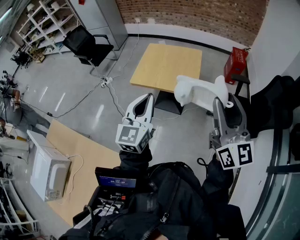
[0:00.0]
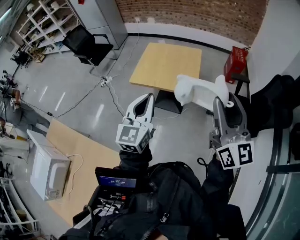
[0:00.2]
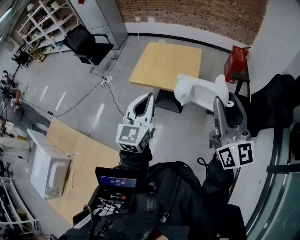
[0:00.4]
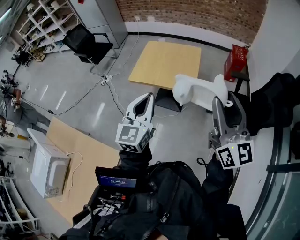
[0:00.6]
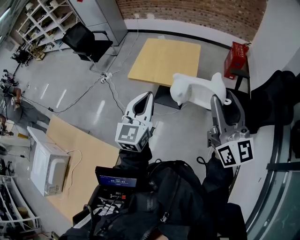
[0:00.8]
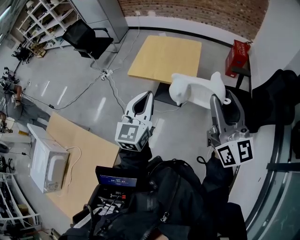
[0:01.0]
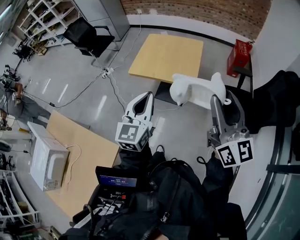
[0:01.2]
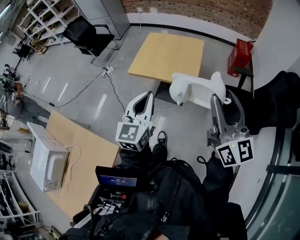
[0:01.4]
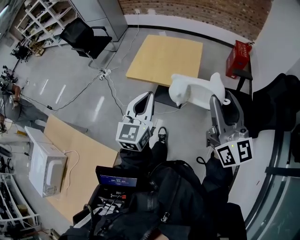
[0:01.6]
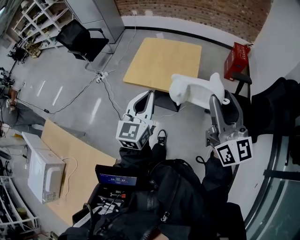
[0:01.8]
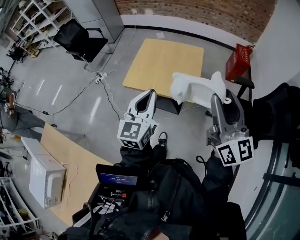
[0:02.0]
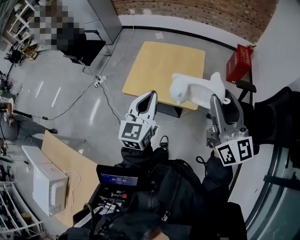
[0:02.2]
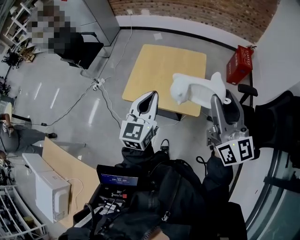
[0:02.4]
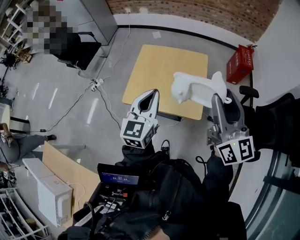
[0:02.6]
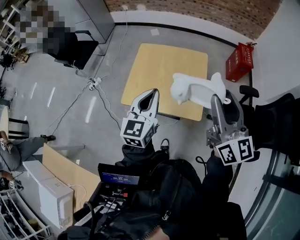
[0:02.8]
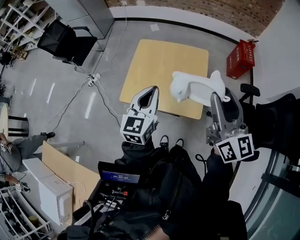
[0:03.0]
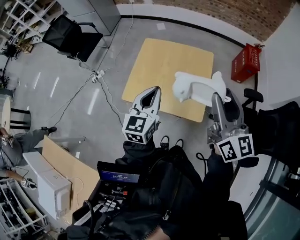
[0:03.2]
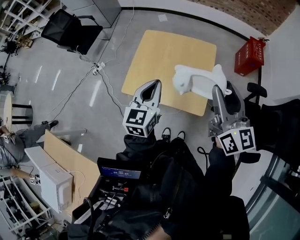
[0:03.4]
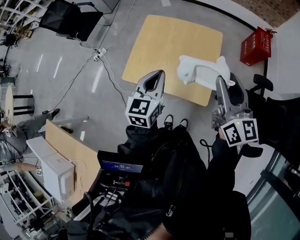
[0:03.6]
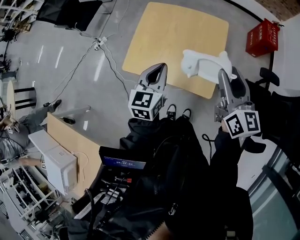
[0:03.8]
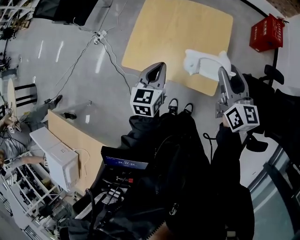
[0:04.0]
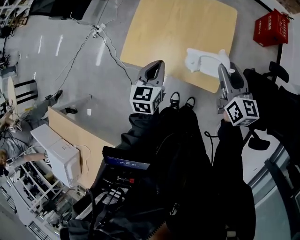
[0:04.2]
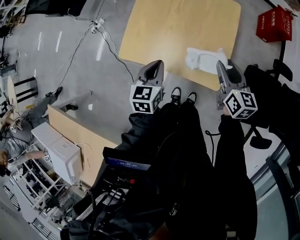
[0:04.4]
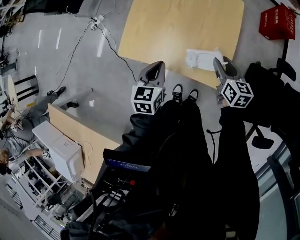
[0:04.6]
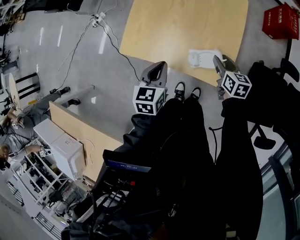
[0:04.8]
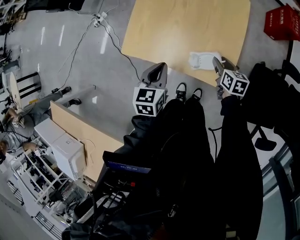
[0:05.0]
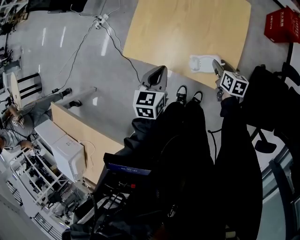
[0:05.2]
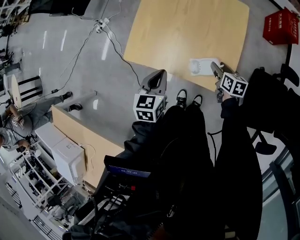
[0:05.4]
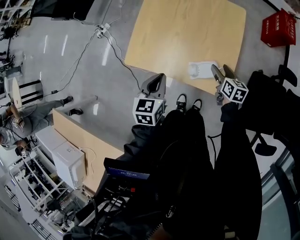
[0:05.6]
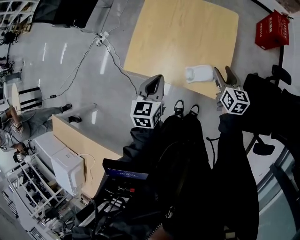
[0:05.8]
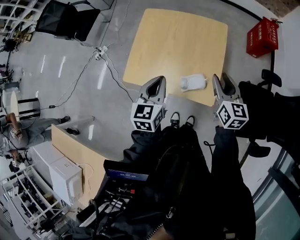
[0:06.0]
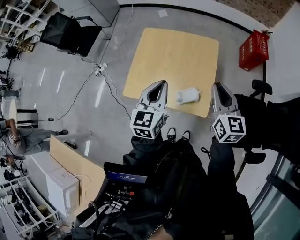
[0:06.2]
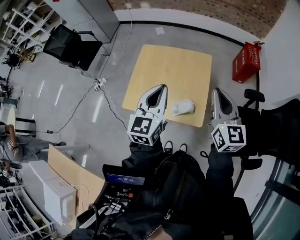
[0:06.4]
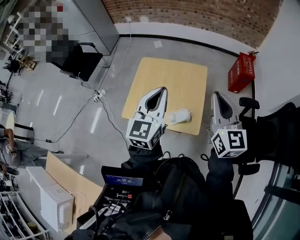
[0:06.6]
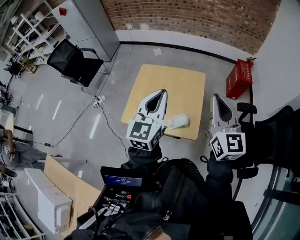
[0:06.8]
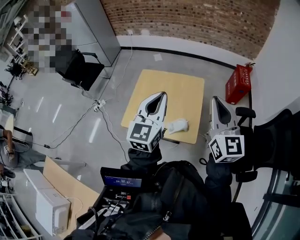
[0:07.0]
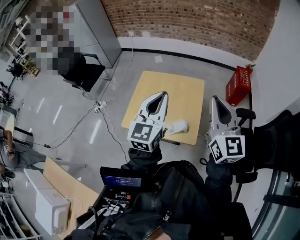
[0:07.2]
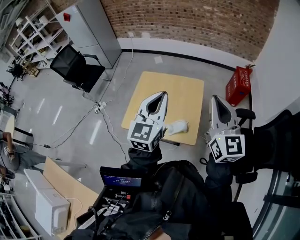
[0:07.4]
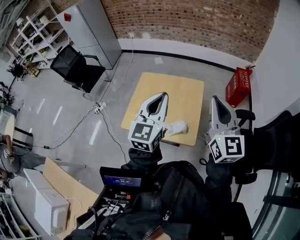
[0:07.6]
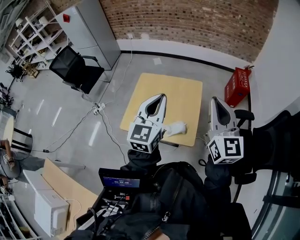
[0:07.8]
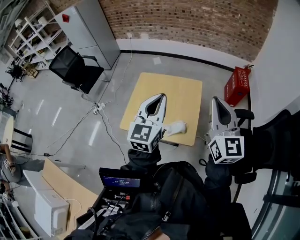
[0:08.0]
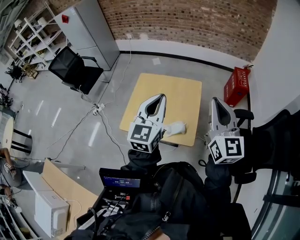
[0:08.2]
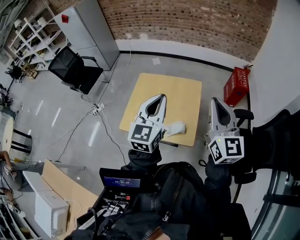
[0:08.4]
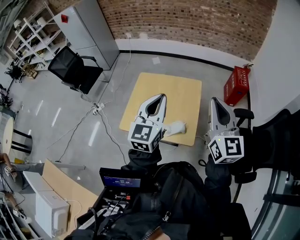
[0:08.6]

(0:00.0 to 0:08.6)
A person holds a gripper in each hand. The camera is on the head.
0:00.0 - 0:01.4: The left gripper moves approximately 5 cm.
0:01.4 - 0:02.8: The two grippers go about 35 cm forward.
0:02.8 - 0:04.4: The left gripper moves downward, roughly 25 cm, and rotates approximately 30 degrees. The right gripper is displaced downward and forward by some 35 cm, and tilts its fingers about 30 degrees downward.
0:04.4 - 0:05.8: The right gripper moves some 20 cm downward and comes back.
0:05.8 - 0:07.2: Both grippers move upward, approximately 35 cm. The left gripper tips its fingers upward by some 30 degrees. Meanwhile the right gripper tilts its fingers roughly 30 degrees upward, and closes up.
0:07.2 - 0:08.6: There are only small adjustments of the grippers.

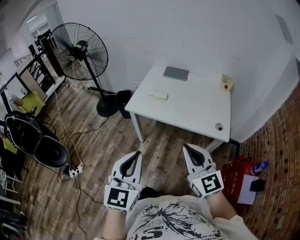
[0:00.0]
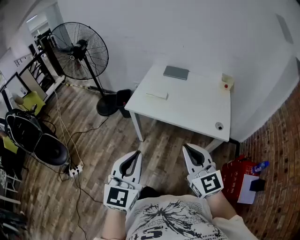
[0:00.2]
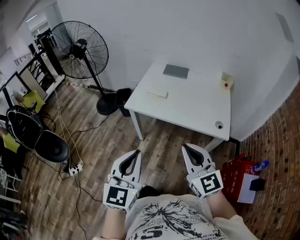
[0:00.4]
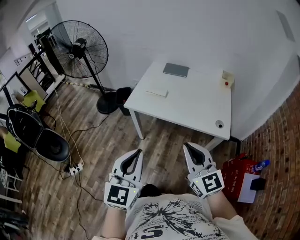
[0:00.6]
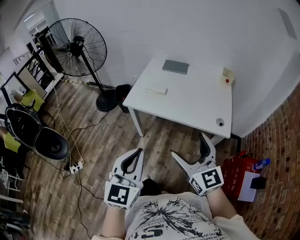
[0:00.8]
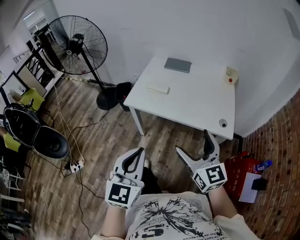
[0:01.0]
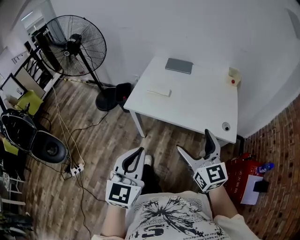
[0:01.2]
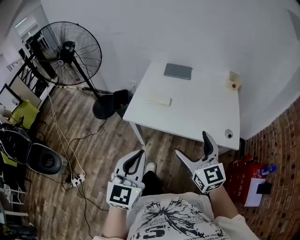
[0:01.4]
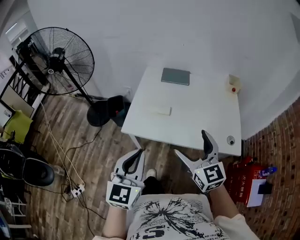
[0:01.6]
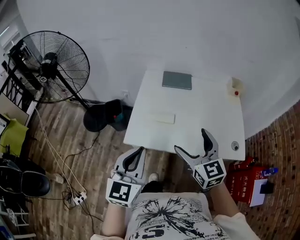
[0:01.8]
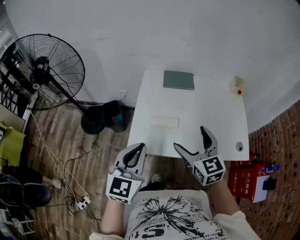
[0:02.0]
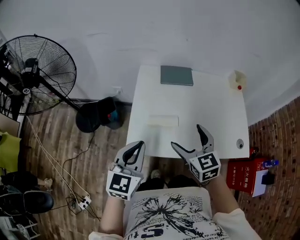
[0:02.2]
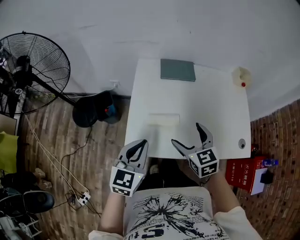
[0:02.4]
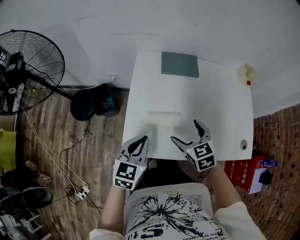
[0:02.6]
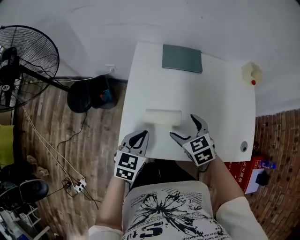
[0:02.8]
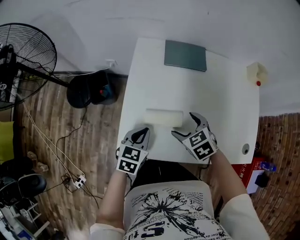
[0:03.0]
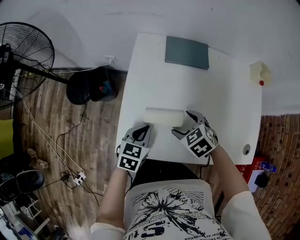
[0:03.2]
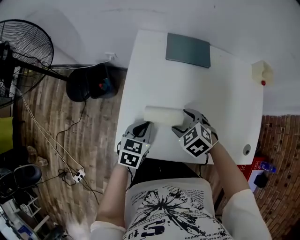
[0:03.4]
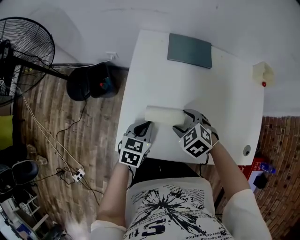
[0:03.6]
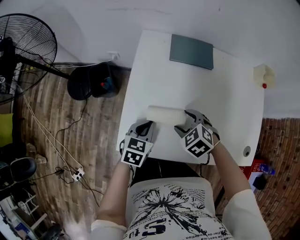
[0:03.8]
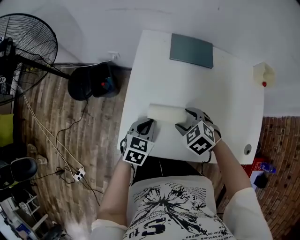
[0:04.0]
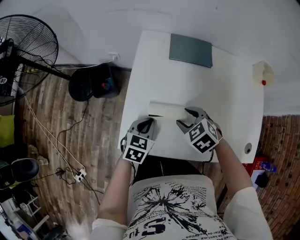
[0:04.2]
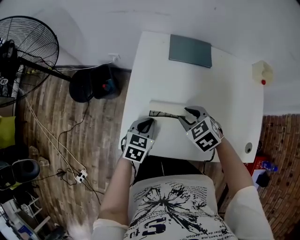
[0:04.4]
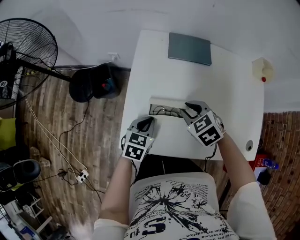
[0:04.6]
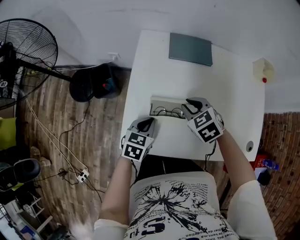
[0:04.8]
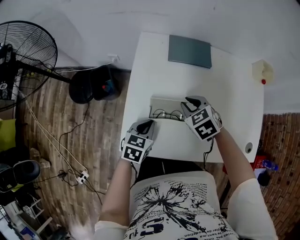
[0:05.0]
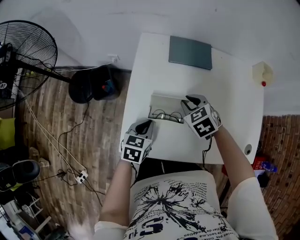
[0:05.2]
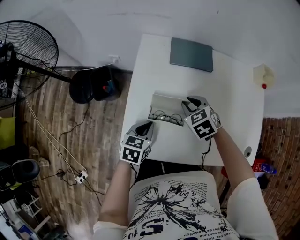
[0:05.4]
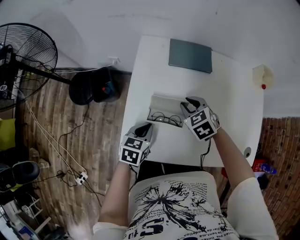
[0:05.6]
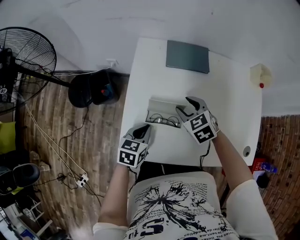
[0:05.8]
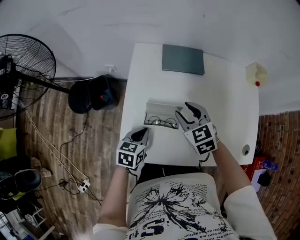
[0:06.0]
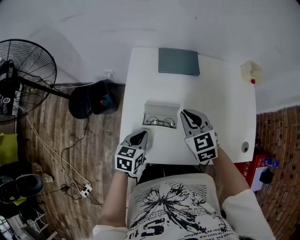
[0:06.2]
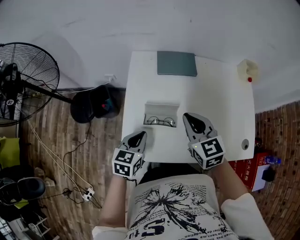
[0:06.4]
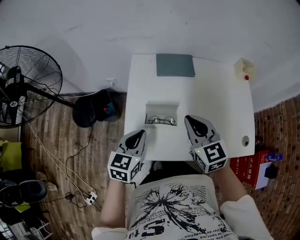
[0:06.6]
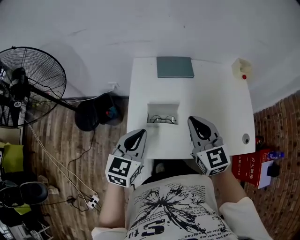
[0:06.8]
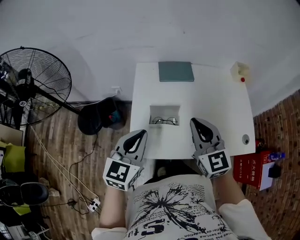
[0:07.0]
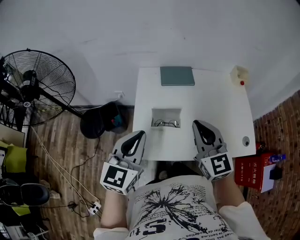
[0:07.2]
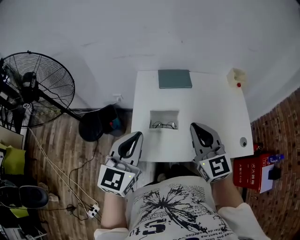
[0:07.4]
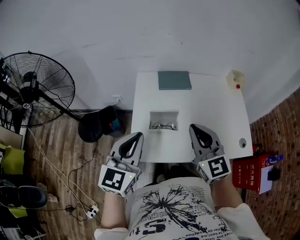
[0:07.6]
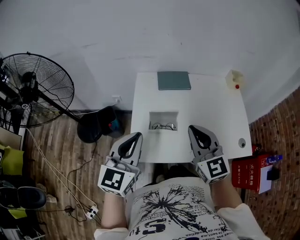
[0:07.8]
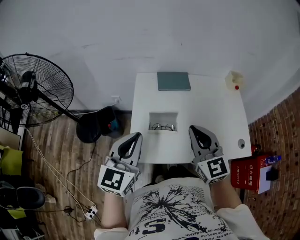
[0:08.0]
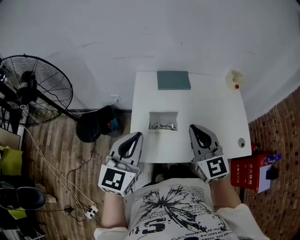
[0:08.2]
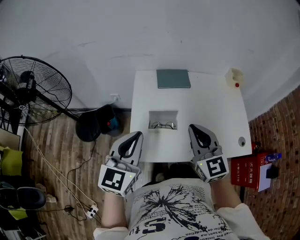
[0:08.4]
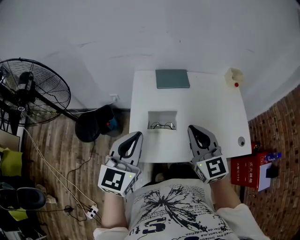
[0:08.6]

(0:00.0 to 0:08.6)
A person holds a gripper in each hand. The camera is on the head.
0:00.0 - 0:01.4: Both grippers move forward, approximately 15 cm. The right gripper opens.
0:01.4 - 0:02.8: Both grippers move forward and downward, about 40 cm. The left gripper turns by some 30 degrees, while the right gripper points its fingers some 40 degrees further downward.
0:02.8 - 0:04.4: The left gripper heads downward, covering about 10 cm, while the right gripper closes its fingers.
0:04.4 - 0:05.8: The right gripper travels forward by approximately 5 cm.
0:05.8 - 0:07.2: The right gripper moves upward and backward, roughly 30 cm, points its fingers roughly 40 degrees further upward, and closes. The left gripper moves upward, some 30 cm, and tips its fingers upward by about 30 degrees.
0:07.2 - 0:08.6: The grippers stay close to where they were, moving slightly.

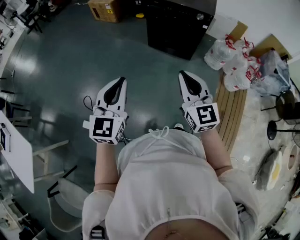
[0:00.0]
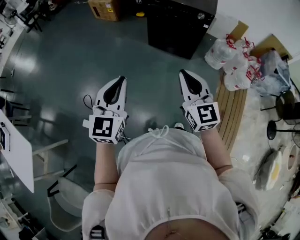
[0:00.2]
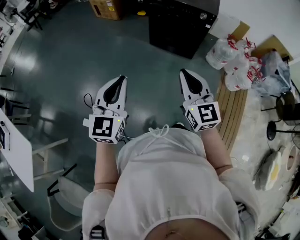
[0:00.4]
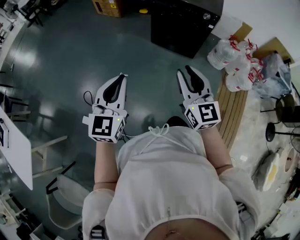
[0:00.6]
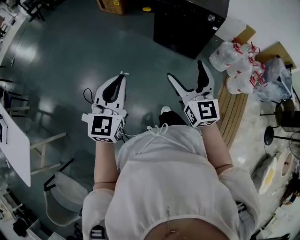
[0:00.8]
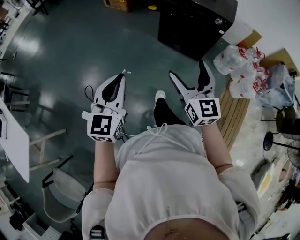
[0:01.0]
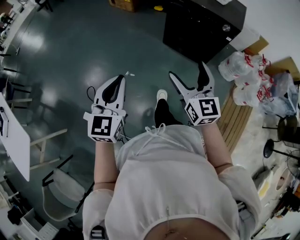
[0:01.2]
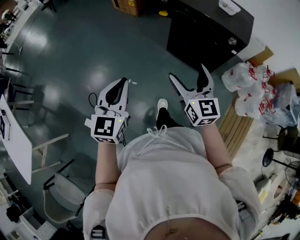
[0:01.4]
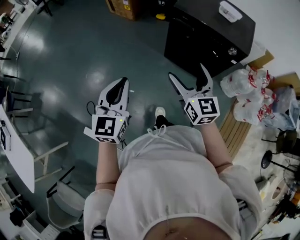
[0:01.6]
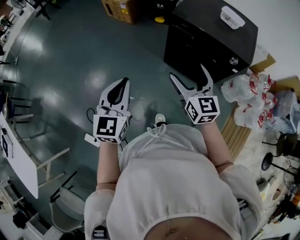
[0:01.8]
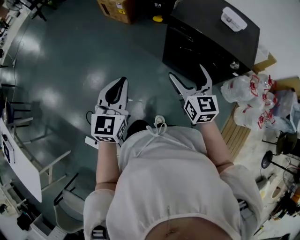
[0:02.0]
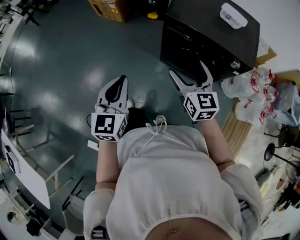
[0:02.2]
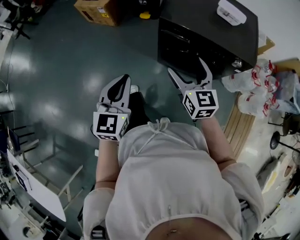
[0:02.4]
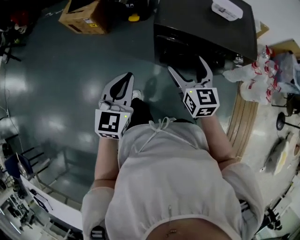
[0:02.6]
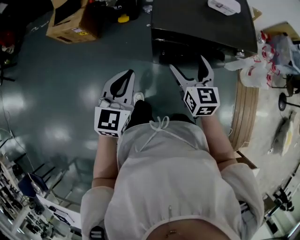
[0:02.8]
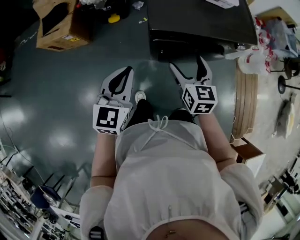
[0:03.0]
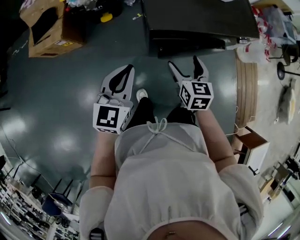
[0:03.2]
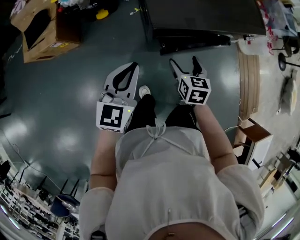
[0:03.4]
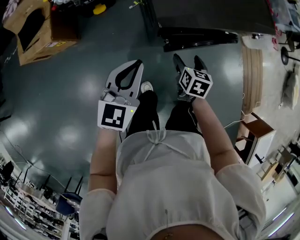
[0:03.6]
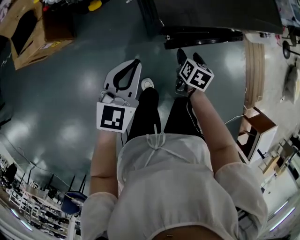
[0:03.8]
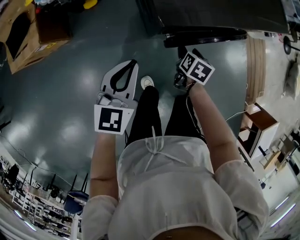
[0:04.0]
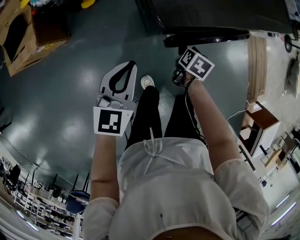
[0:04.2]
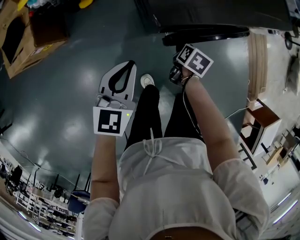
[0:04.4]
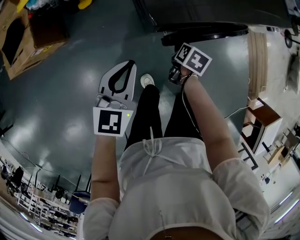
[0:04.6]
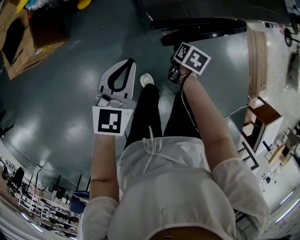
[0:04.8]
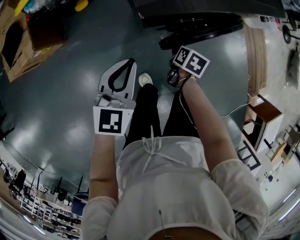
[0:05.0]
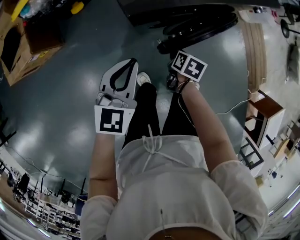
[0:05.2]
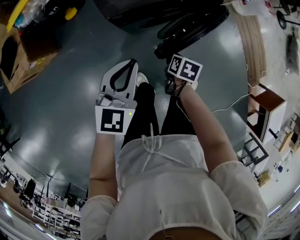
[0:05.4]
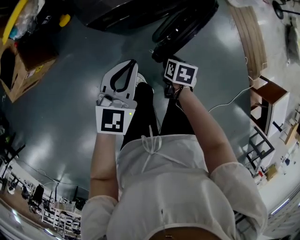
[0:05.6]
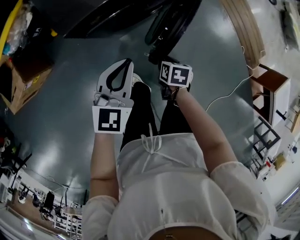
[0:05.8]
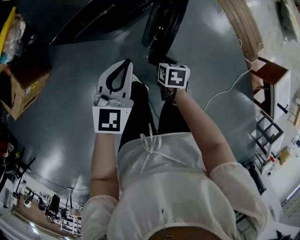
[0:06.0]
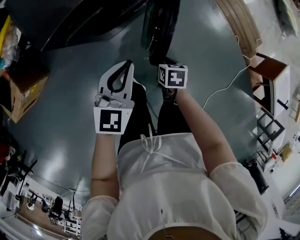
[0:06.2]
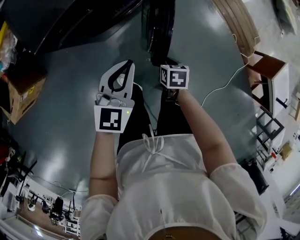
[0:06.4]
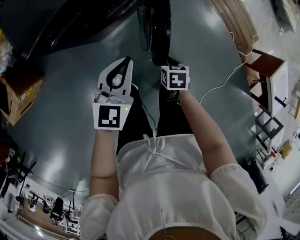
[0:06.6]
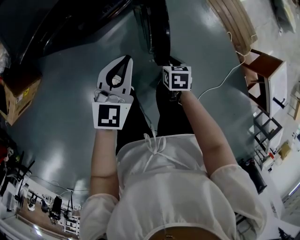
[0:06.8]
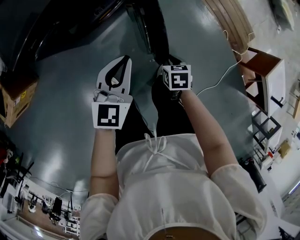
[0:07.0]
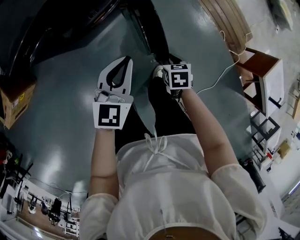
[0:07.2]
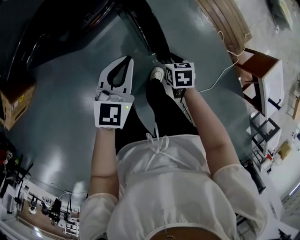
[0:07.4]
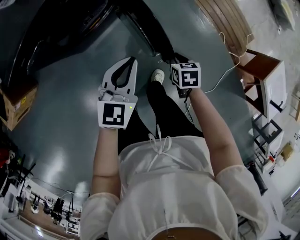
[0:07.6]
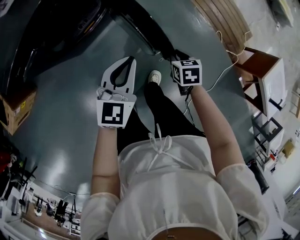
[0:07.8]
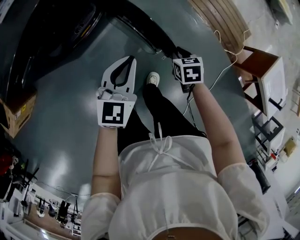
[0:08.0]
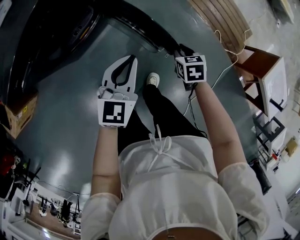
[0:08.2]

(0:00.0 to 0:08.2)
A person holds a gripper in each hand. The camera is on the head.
0:00.0 - 0:01.6: Both grippers move forward, roughly 35 cm. The right gripper opens its fingers.
0:01.6 - 0:03.2: Both grippers are carried some 50 cm. The left gripper rotates roughly 50 degrees, while the right gripper turns by about 50 degrees.
0:03.2 - 0:05.0: The left gripper goes approximately 20 cm downward; the right gripper travels downward by about 30 cm, tips its fingers downward by roughly 30 degrees, and closes.
0:05.0 - 0:06.6: The left gripper moves to the right, roughly 35 cm. The right gripper is displaced to the right and backward by about 35 cm.
0:06.6 - 0:08.2: The right gripper moves to the right and forward, about 35 cm, while the left gripper heads to the right, covering about 25 cm.
